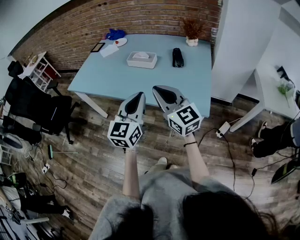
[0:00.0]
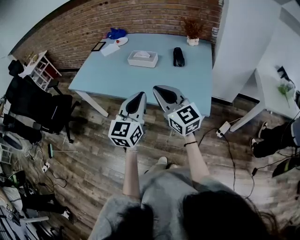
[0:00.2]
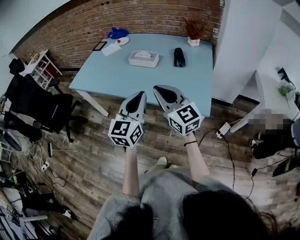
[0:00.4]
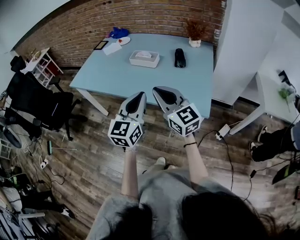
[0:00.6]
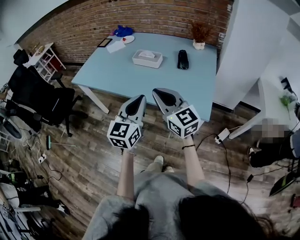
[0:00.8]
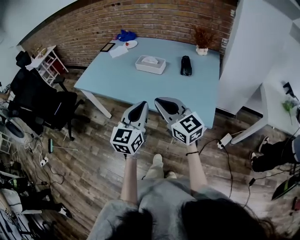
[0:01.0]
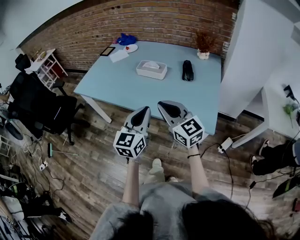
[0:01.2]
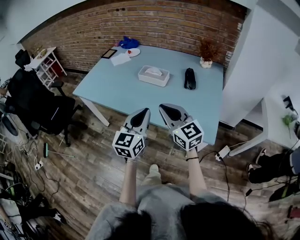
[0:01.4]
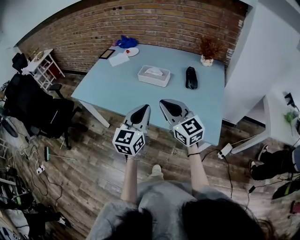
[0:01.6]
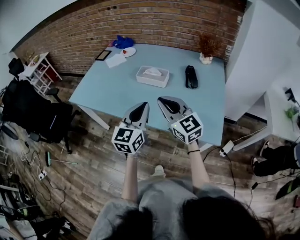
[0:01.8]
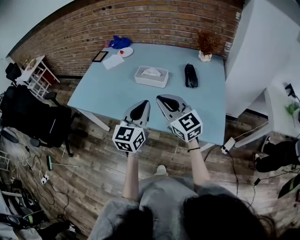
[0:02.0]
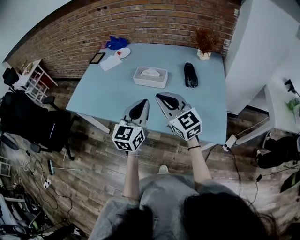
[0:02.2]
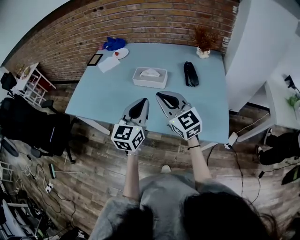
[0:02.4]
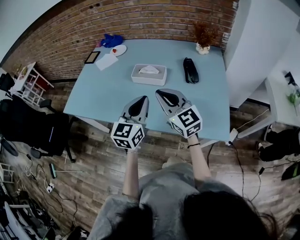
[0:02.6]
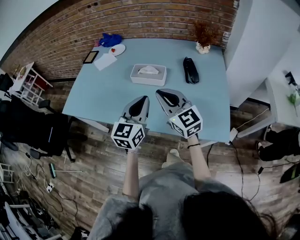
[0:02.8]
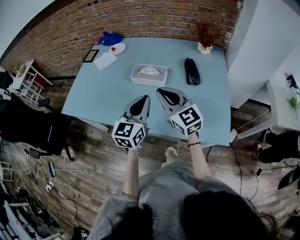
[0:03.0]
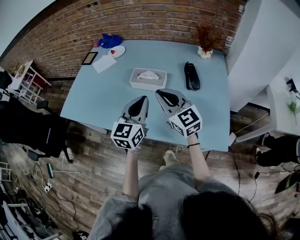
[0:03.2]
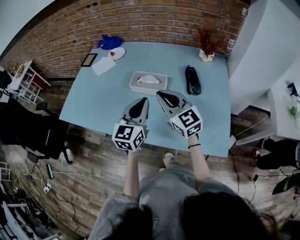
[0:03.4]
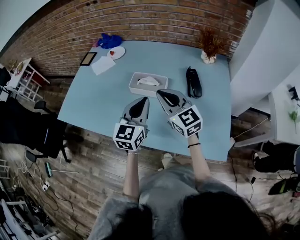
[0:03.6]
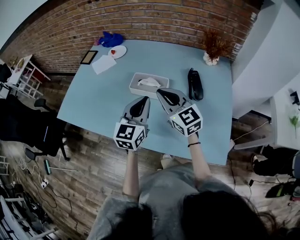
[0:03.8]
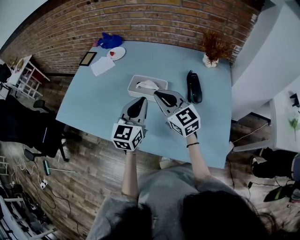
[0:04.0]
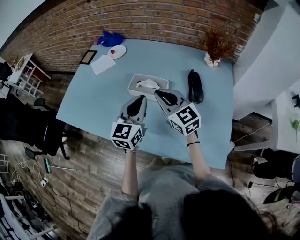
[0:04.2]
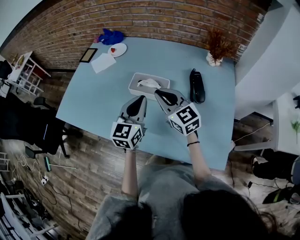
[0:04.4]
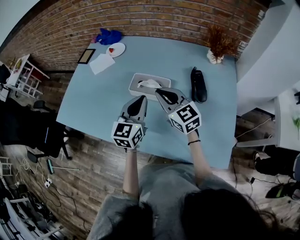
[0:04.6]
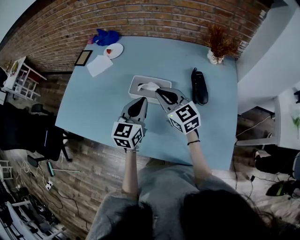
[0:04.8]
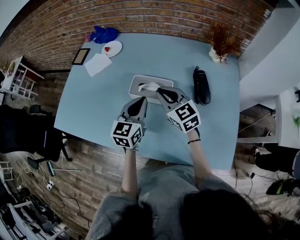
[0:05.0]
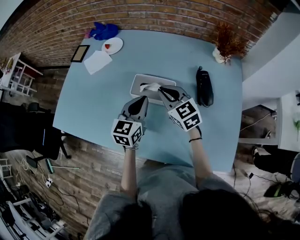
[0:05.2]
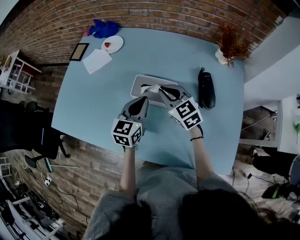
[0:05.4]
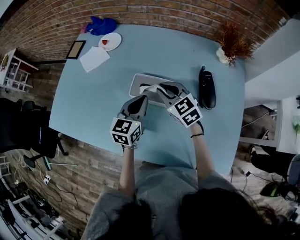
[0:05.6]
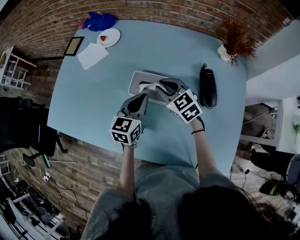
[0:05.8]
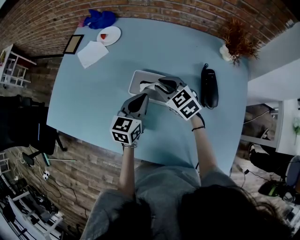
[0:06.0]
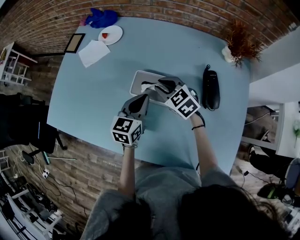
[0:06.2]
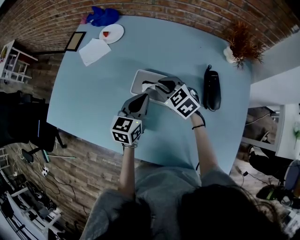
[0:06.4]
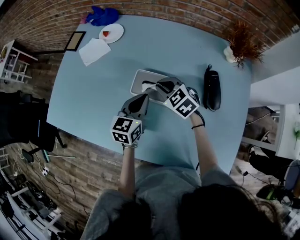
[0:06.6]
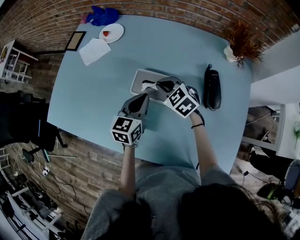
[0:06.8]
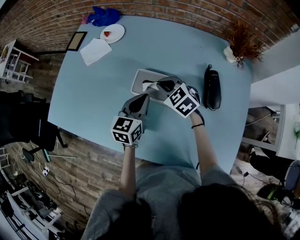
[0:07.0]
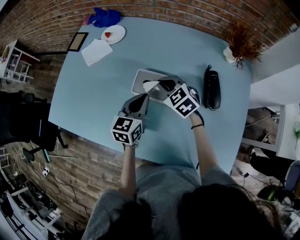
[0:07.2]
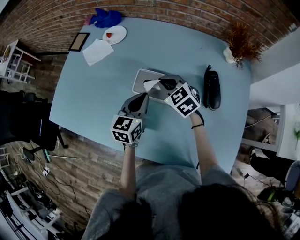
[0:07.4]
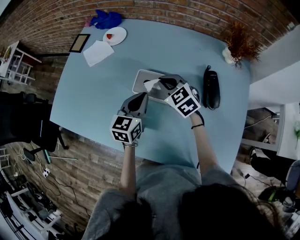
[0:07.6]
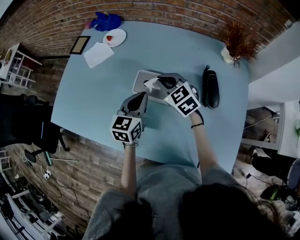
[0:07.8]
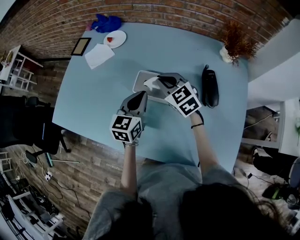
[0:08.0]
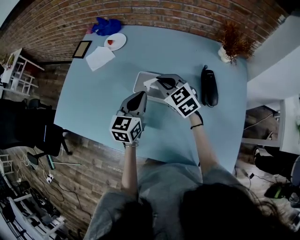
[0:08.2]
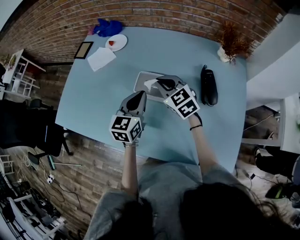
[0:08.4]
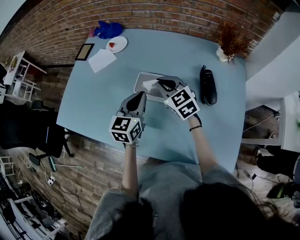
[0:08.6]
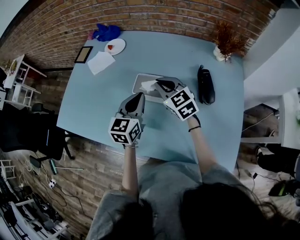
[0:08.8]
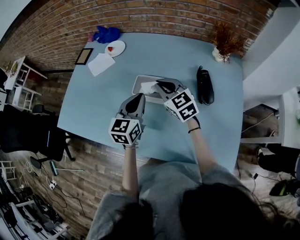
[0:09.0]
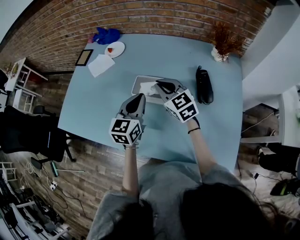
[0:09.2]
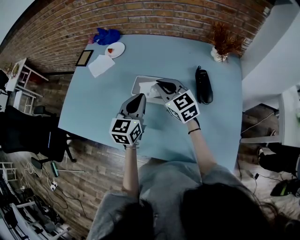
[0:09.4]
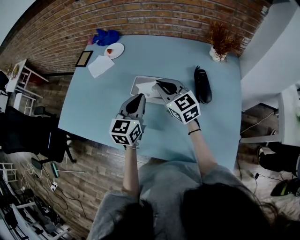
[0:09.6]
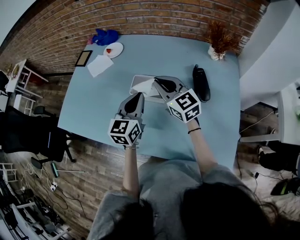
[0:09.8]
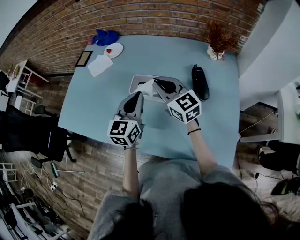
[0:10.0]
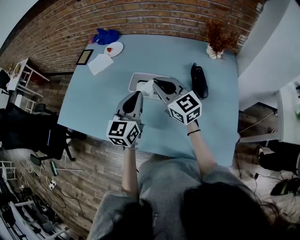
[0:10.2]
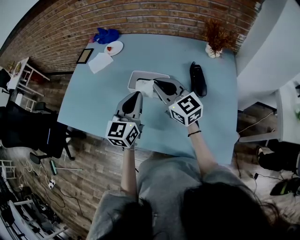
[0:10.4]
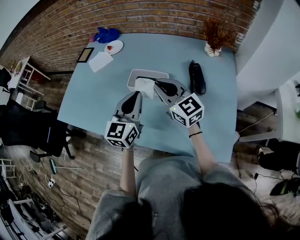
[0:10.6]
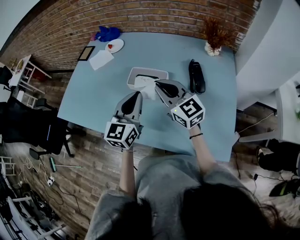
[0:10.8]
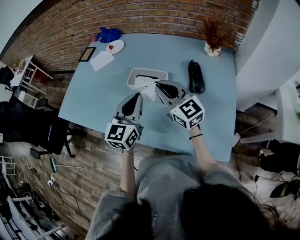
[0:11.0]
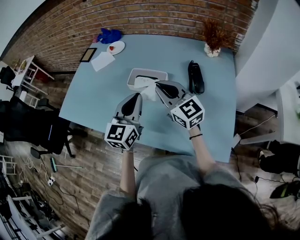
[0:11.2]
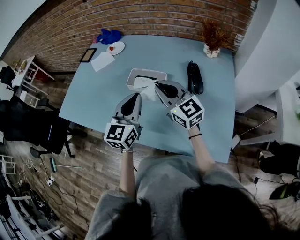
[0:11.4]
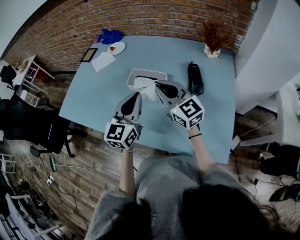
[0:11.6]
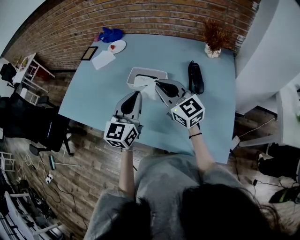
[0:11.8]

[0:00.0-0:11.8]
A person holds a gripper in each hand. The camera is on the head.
0:00.0 to 0:01.4: Both grippers travel together forward, about 5 cm.
0:01.4 to 0:03.0: The two grippers go about 20 cm forward.
0:03.0 to 0:04.4: The grippers both shift forward by some 15 cm.
0:04.4 to 0:06.0: The two grippers go approximately 15 cm forward and downward. The right gripper swivels approximately 30 degrees.
0:06.0 to 0:07.4: There are only small adjustments of the grippers.
0:07.4 to 0:08.8: The two grippers go approximately 5 cm upward.
0:08.8 to 0:10.4: Both grippers move backward and upward, about 10 cm. The right gripper changes its angle by approximately 20 degrees.
0:10.4 to 0:11.8: The grippers both shift backward by some 5 cm.

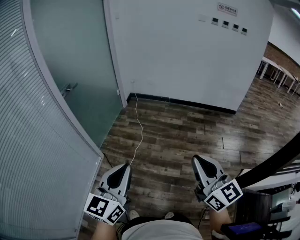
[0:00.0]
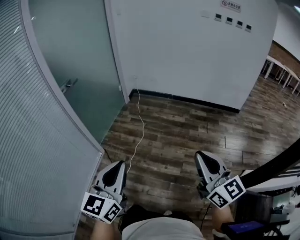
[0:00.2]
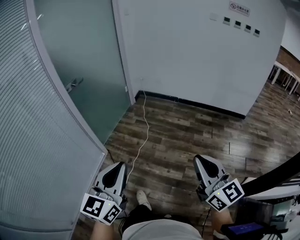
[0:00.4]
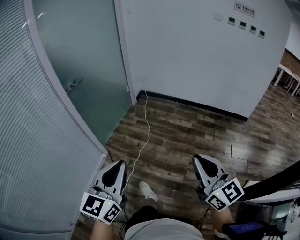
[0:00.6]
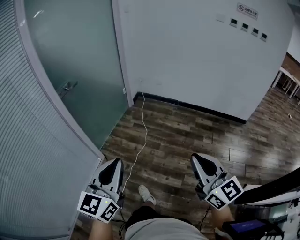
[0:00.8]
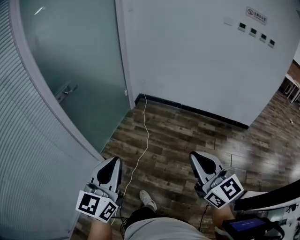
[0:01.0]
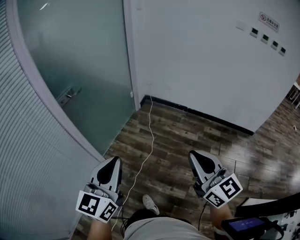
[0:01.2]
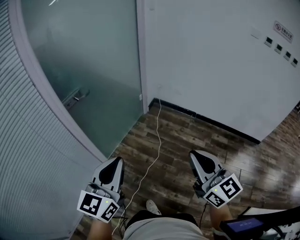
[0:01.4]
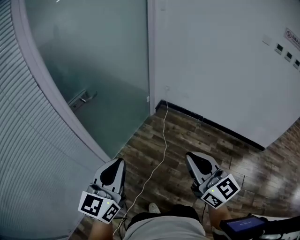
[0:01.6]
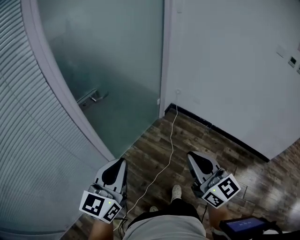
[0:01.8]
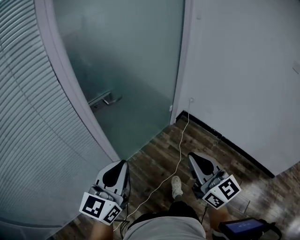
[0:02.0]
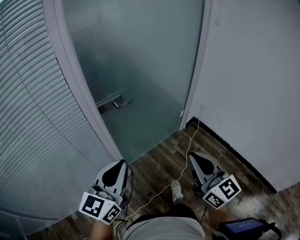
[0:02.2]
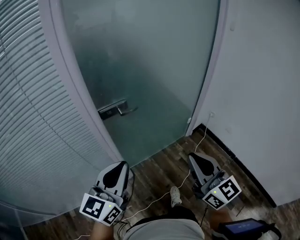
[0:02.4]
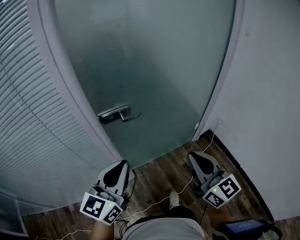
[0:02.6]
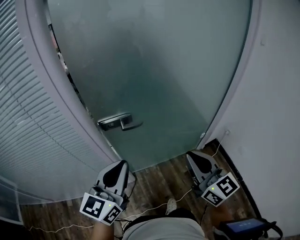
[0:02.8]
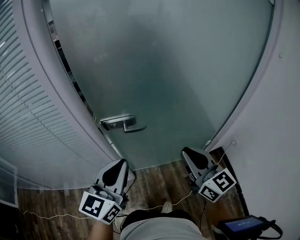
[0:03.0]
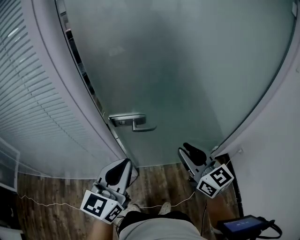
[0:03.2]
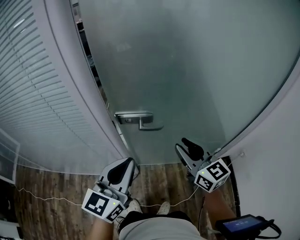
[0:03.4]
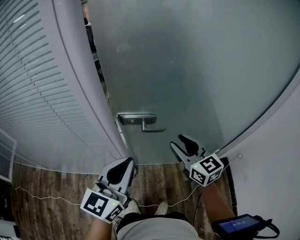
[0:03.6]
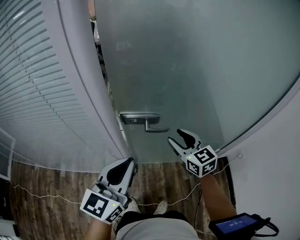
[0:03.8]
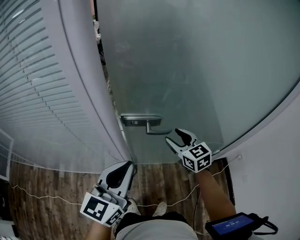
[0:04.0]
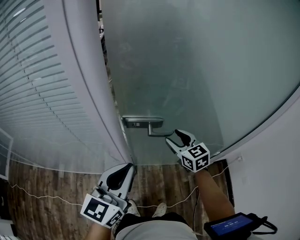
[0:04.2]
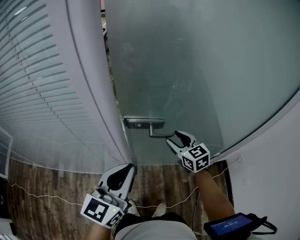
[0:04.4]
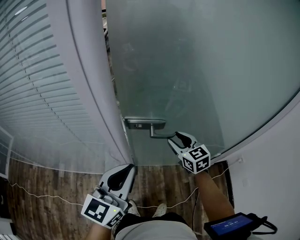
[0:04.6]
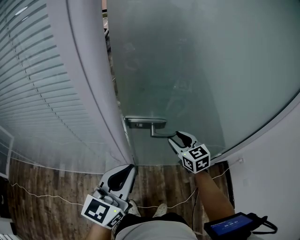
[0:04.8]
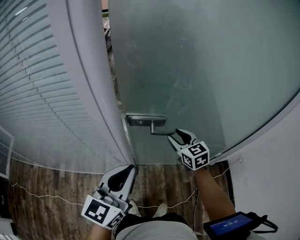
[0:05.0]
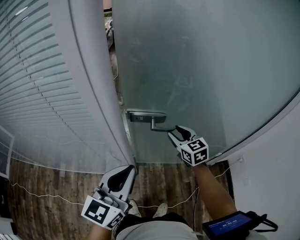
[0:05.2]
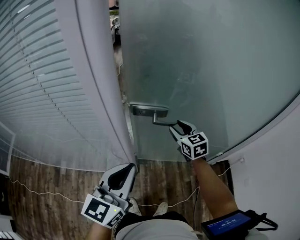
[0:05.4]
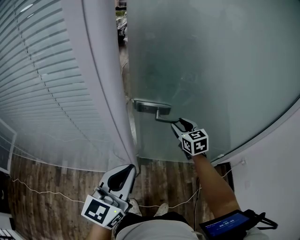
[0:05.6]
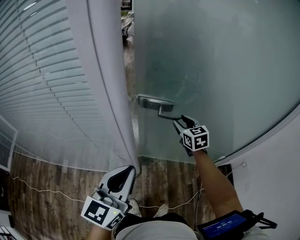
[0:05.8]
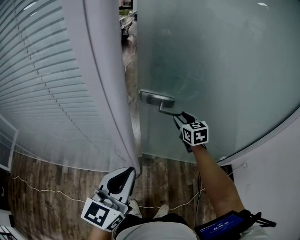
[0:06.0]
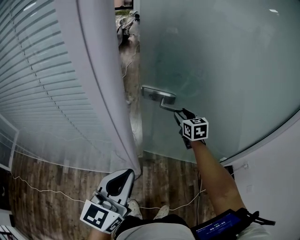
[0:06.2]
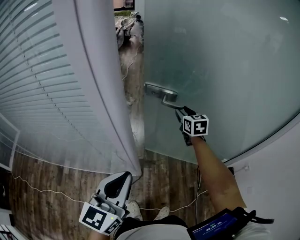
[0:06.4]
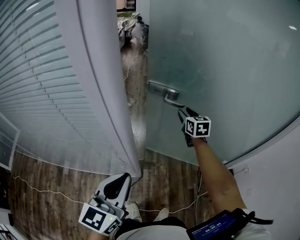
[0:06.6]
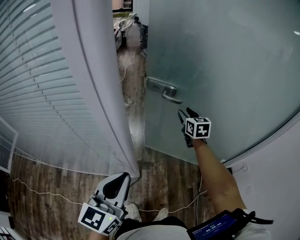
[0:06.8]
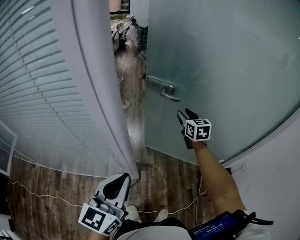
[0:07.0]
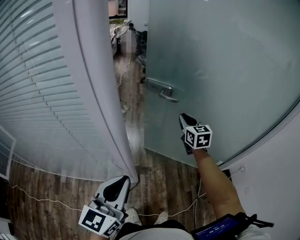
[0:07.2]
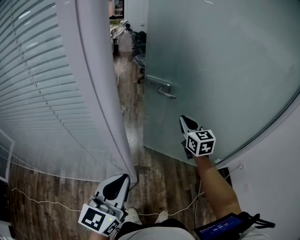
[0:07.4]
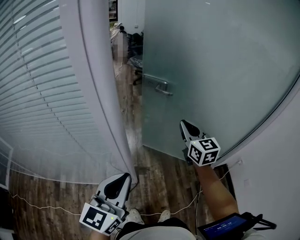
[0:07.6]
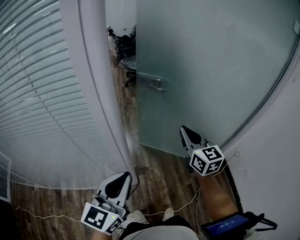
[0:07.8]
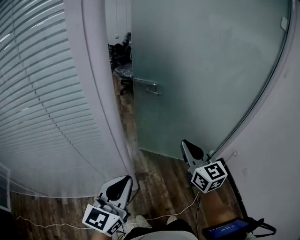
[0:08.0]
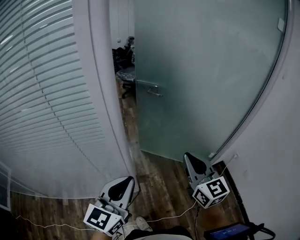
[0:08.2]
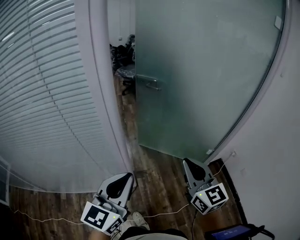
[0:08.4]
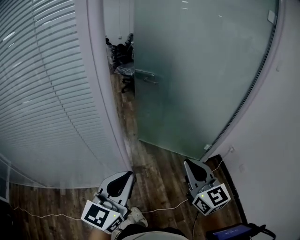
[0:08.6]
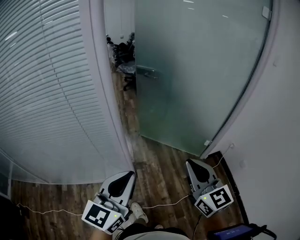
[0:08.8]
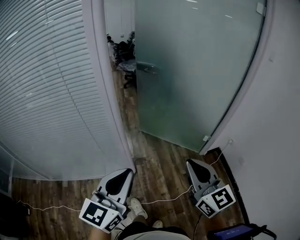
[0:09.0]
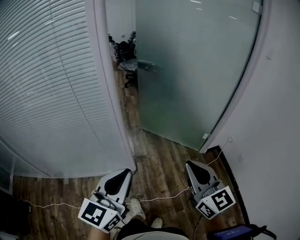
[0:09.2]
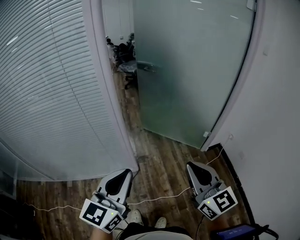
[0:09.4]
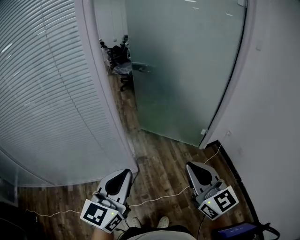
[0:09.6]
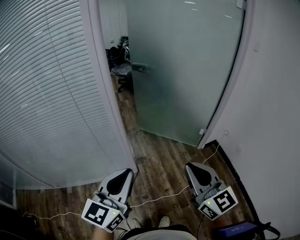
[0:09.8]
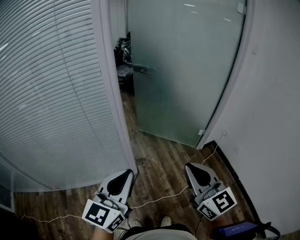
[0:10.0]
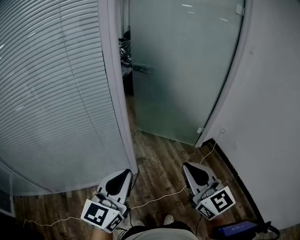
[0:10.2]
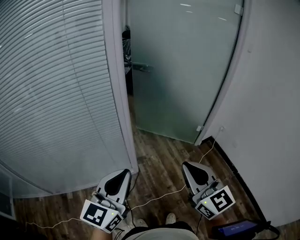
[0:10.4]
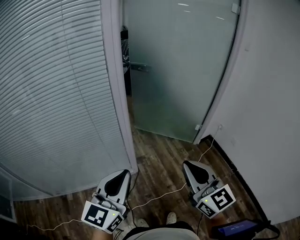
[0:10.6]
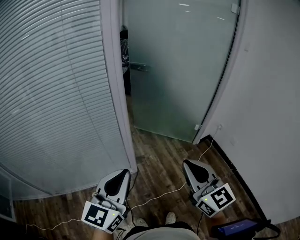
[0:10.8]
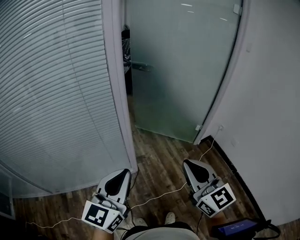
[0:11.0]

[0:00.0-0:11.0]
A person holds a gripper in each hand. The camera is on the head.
0:00.0 to 0:01.6: Both grippers move forward, approximately 40 cm. The right gripper turns by some 20 degrees.
0:01.6 to 0:03.2: The right gripper ends up approximately 50 cm from where it was, and changes its angle by some 50 degrees. Meanwhile the left gripper moves some 30 cm, and rotates some 50 degrees.
0:03.2 to 0:04.8: The left gripper goes some 5 cm to the left, while the right gripper travels forward, downward and to the left by roughly 25 cm, rotates about 20 degrees, and opens its fingers.
0:04.8 to 0:06.2: The right gripper shifts about 15 cm forward.
0:06.2 to 0:07.8: The right gripper travels backward and upward by about 20 cm, turns by some 20 degrees, and closes up.
0:07.8 to 0:09.4: The right gripper moves backward, roughly 40 cm; the left gripper travels backward by about 20 cm.
0:09.4 to 0:11.0: The right gripper moves to the left and backward, approximately 15 cm; the left gripper heads to the left, covering roughly 10 cm.

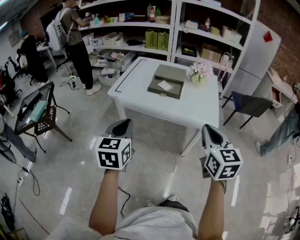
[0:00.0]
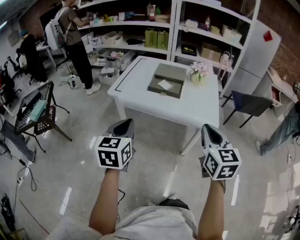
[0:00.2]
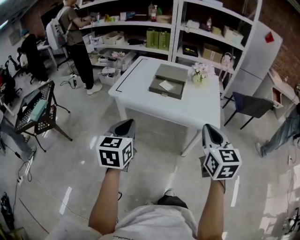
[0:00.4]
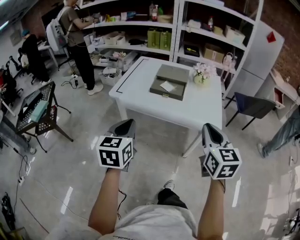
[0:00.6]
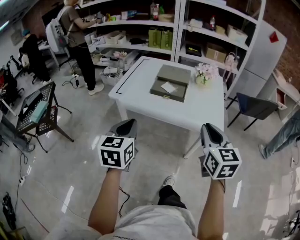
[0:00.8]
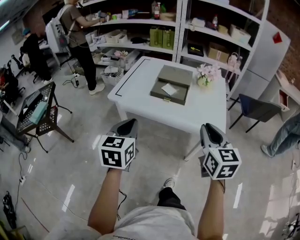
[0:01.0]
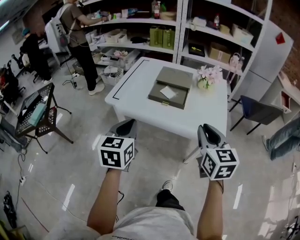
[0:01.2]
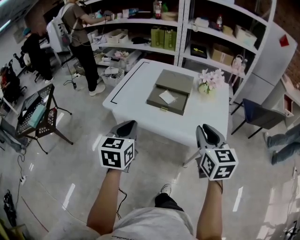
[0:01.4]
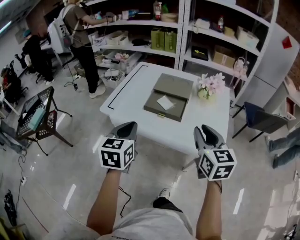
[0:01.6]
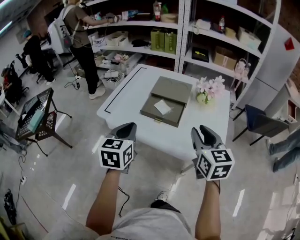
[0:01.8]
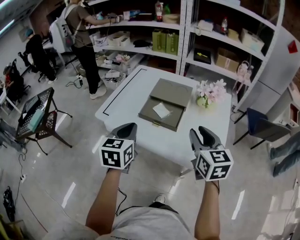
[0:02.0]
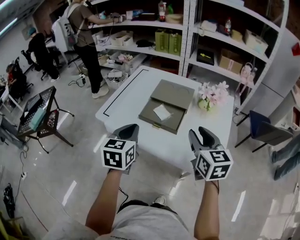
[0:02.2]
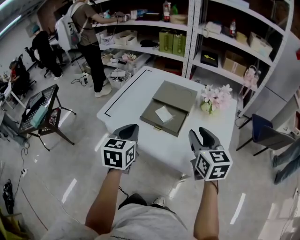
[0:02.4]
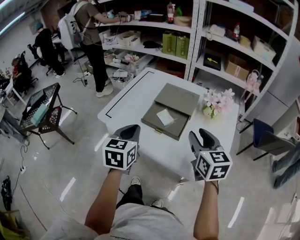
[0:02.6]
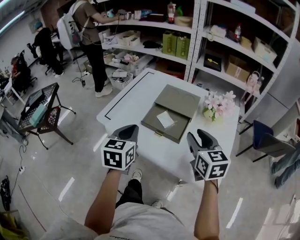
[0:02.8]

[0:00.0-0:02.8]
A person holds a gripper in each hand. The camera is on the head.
0:00.0 to 0:01.4: The grippers both shift forward by approximately 15 cm.
0:01.4 to 0:02.8: The grippers both shift forward by about 15 cm.
